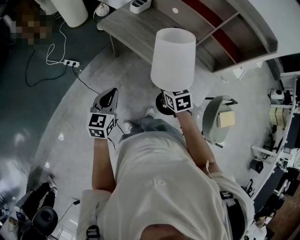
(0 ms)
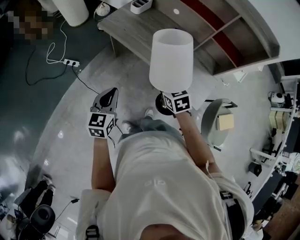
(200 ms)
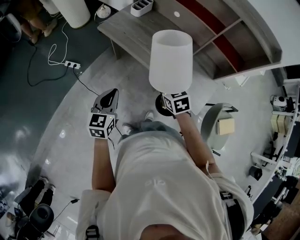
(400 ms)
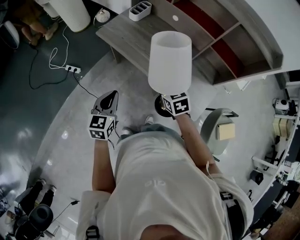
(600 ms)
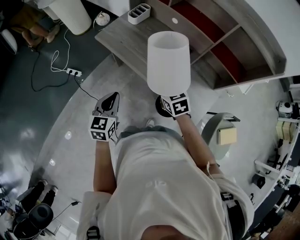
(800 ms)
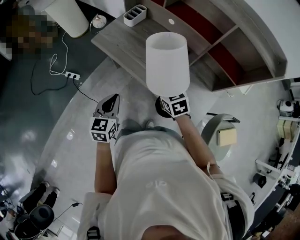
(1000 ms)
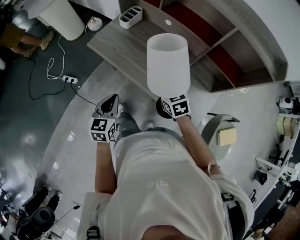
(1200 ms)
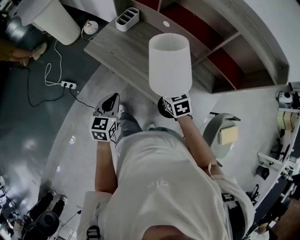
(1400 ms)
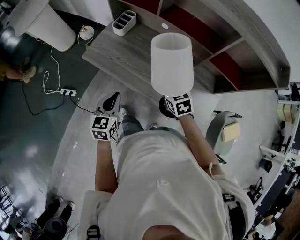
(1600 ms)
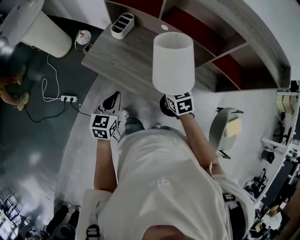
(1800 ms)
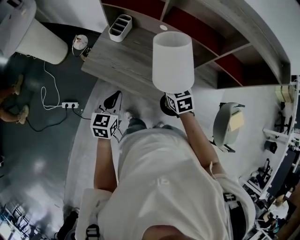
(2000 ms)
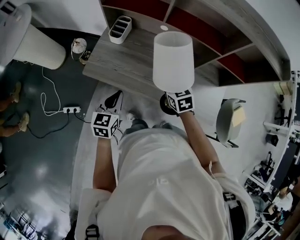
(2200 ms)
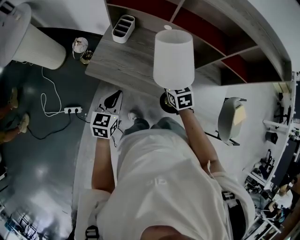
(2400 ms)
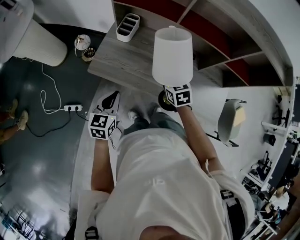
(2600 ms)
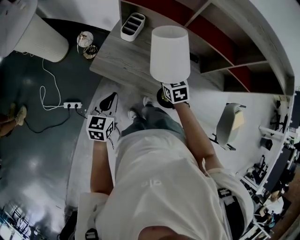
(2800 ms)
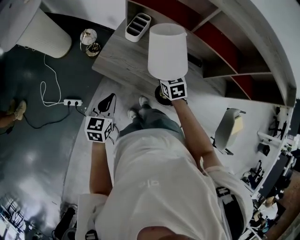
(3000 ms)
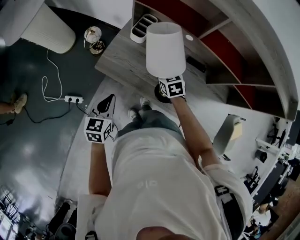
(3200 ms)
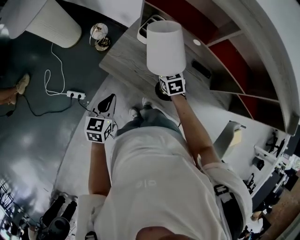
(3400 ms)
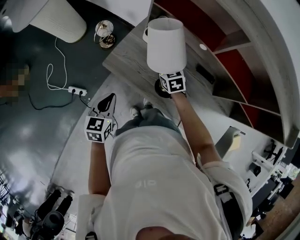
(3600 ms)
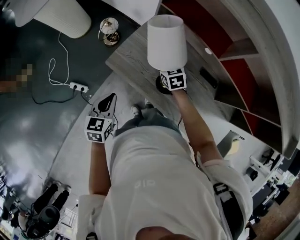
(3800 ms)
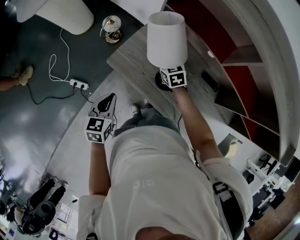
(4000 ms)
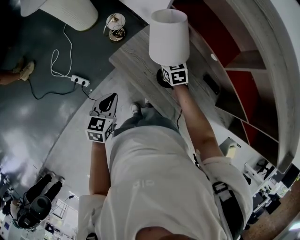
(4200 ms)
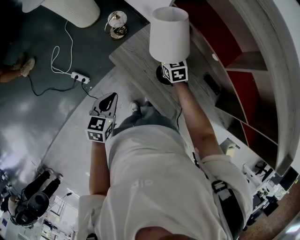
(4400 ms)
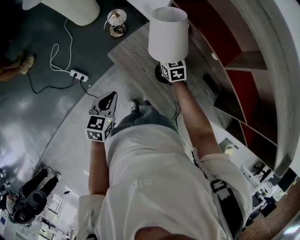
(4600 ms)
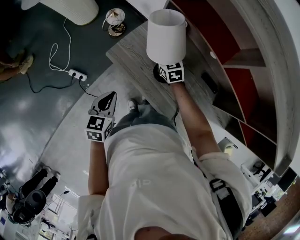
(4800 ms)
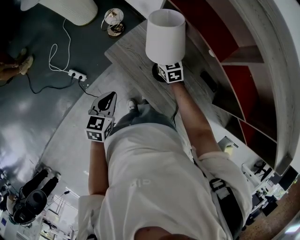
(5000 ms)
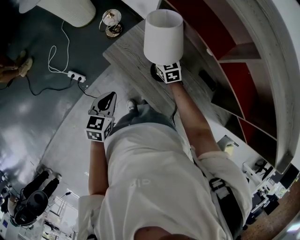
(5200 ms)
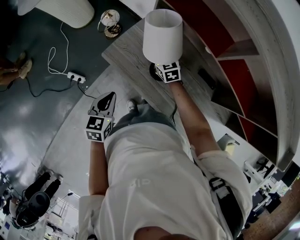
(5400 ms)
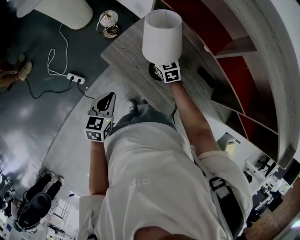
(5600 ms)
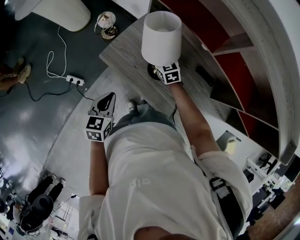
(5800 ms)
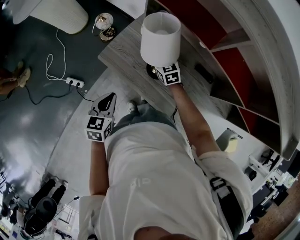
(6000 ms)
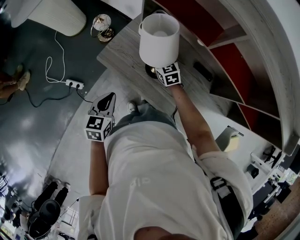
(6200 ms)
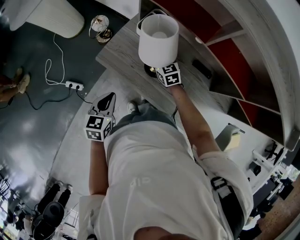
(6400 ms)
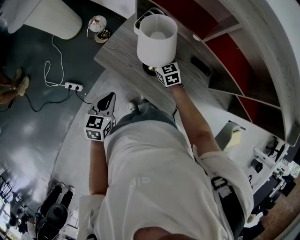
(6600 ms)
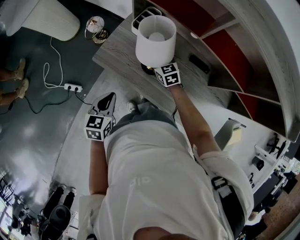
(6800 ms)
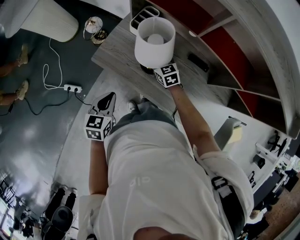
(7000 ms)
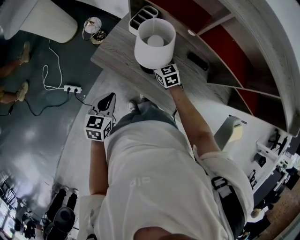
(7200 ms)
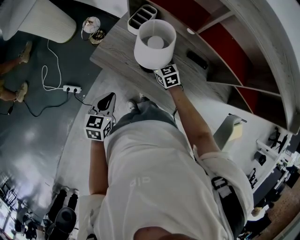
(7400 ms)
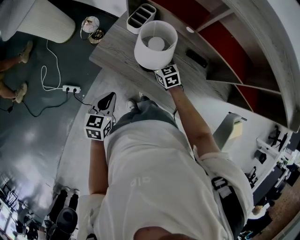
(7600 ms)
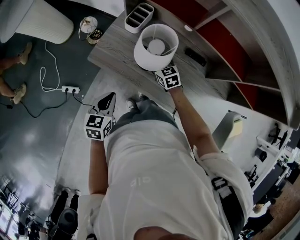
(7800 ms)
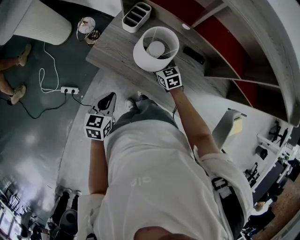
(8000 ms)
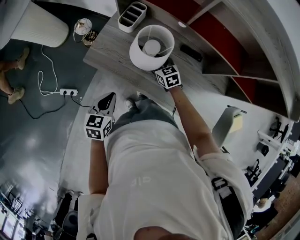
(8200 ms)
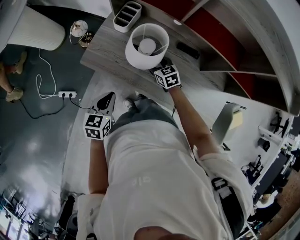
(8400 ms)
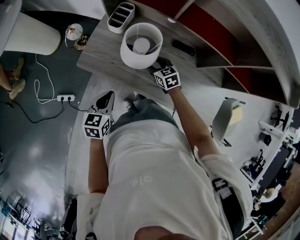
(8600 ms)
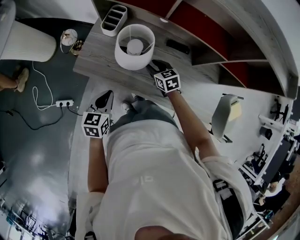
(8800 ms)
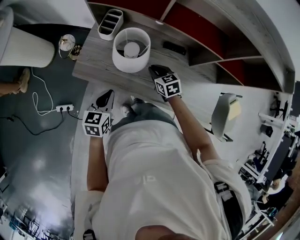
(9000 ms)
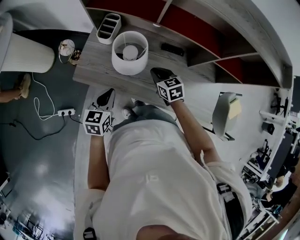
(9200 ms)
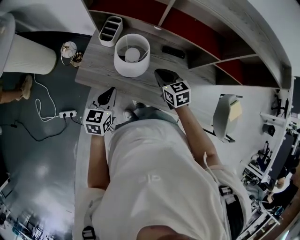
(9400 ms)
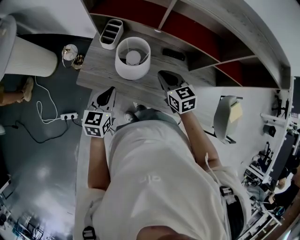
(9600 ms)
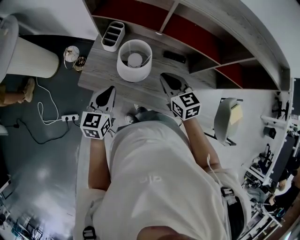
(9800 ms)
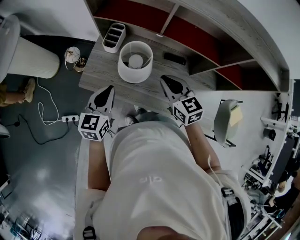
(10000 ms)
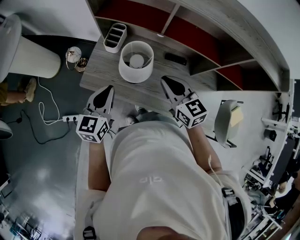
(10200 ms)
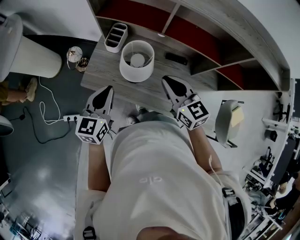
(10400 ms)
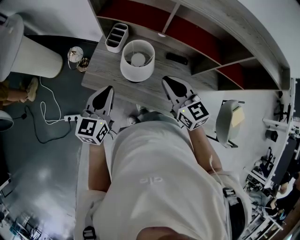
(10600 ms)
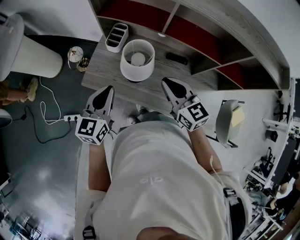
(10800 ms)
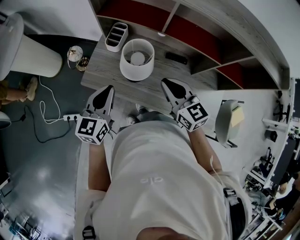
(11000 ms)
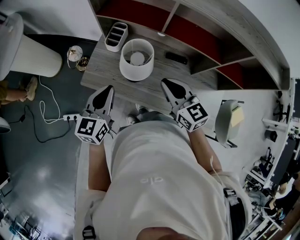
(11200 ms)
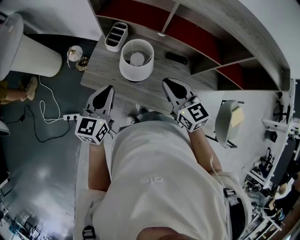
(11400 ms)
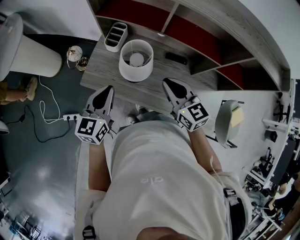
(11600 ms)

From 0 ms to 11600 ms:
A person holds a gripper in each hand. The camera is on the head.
From 0 ms to 1400 ms: Both grippers travel together forward and to the right, some 20 cm.
From 1400 ms to 2800 ms: The grippers both shift to the left and forward by approximately 25 cm.
From 2800 ms to 4400 ms: The left gripper is displaced to the left by some 5 cm, and rotates about 20 degrees; the right gripper heads forward and to the left, covering some 25 cm, and rotates roughly 20 degrees.
From 4400 ms to 5800 ms: The grippers make only small movements.
From 5800 ms to 7200 ms: The right gripper moves backward, about 5 cm.
From 7200 ms to 8800 ms: The right gripper is displaced to the right and backward by about 10 cm; the left gripper travels to the right by some 5 cm.
From 8800 ms to 10200 ms: The right gripper is displaced upward by some 25 cm, swivels roughly 20 degrees, and closes its fingers; the left gripper moves upward and forward, approximately 15 cm.
From 10200 ms to 11600 ms: There are only small adjustments of the grippers.

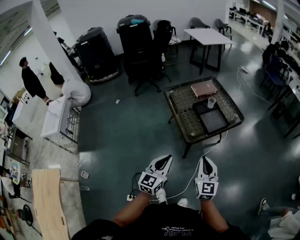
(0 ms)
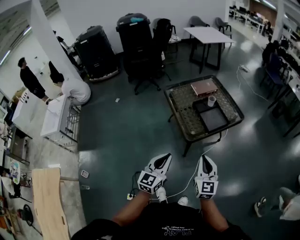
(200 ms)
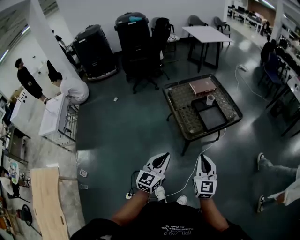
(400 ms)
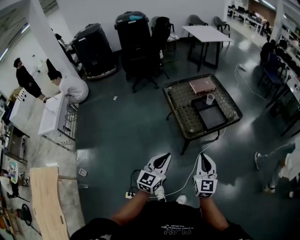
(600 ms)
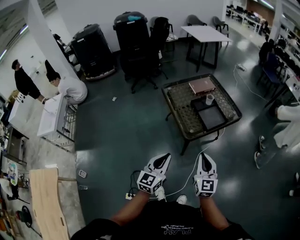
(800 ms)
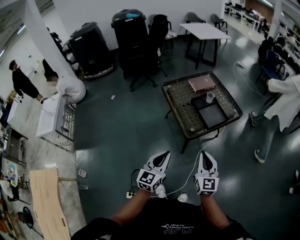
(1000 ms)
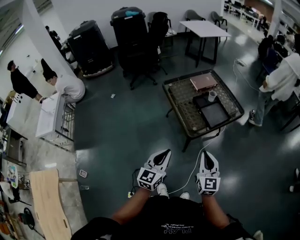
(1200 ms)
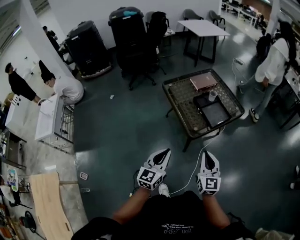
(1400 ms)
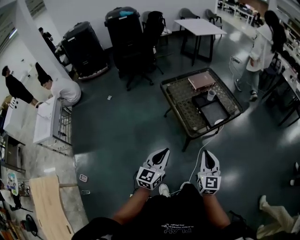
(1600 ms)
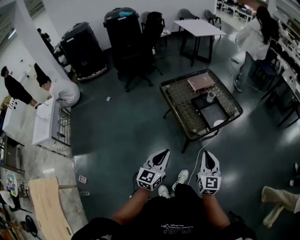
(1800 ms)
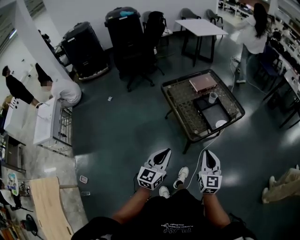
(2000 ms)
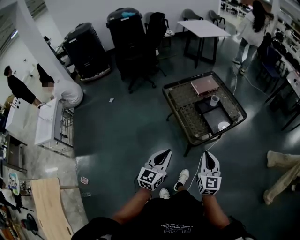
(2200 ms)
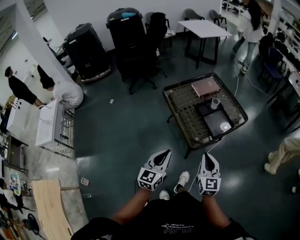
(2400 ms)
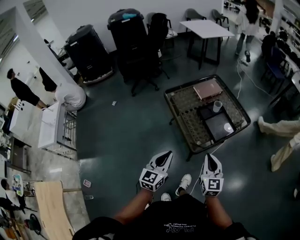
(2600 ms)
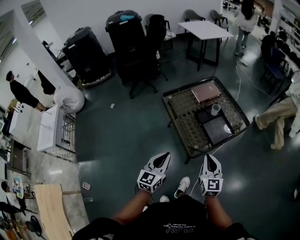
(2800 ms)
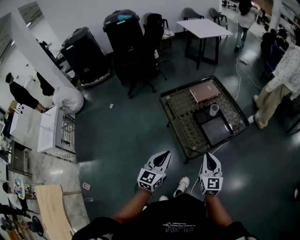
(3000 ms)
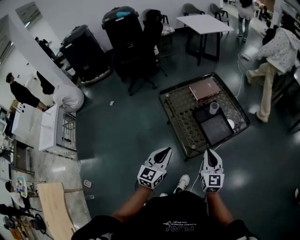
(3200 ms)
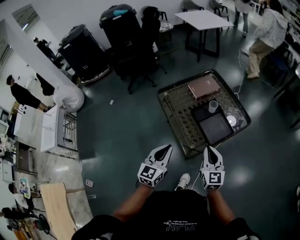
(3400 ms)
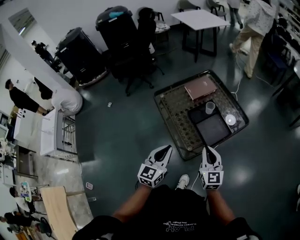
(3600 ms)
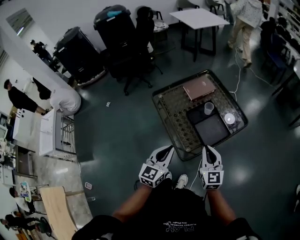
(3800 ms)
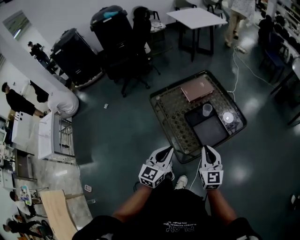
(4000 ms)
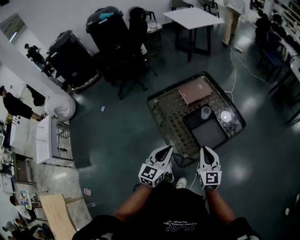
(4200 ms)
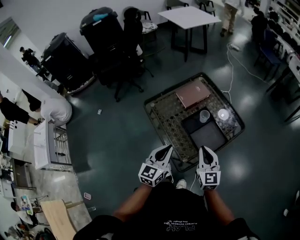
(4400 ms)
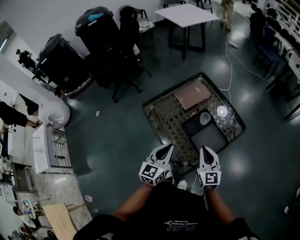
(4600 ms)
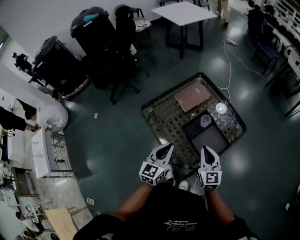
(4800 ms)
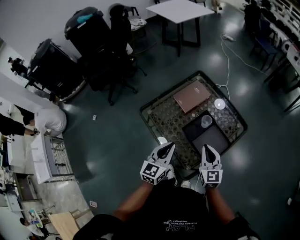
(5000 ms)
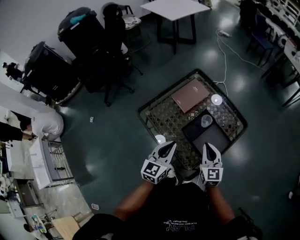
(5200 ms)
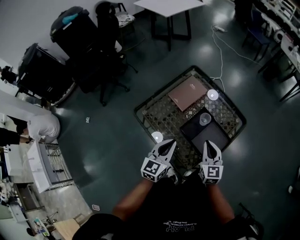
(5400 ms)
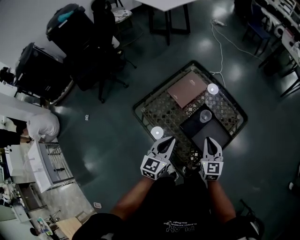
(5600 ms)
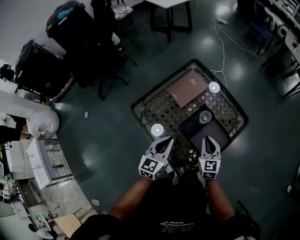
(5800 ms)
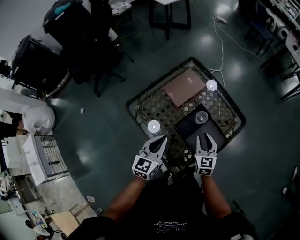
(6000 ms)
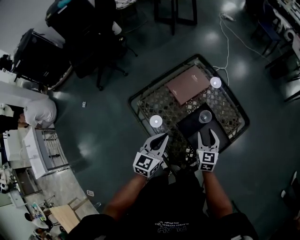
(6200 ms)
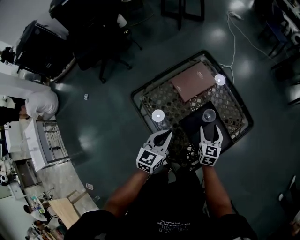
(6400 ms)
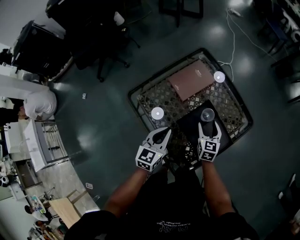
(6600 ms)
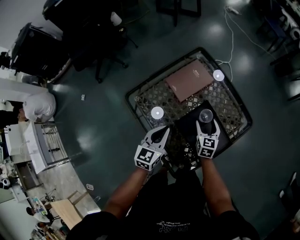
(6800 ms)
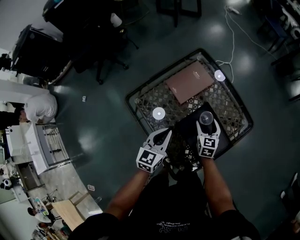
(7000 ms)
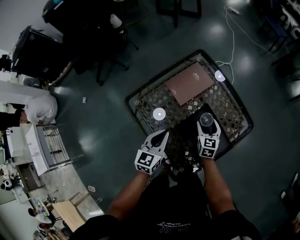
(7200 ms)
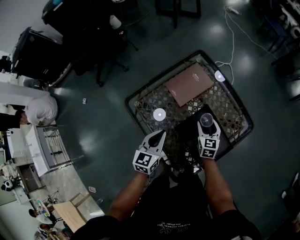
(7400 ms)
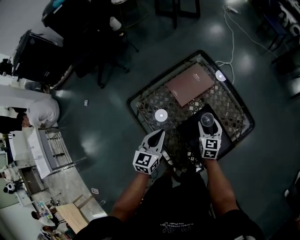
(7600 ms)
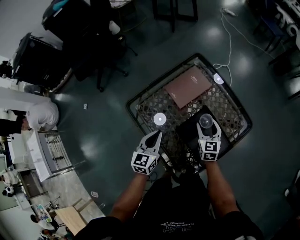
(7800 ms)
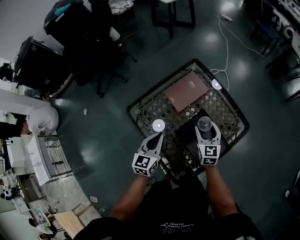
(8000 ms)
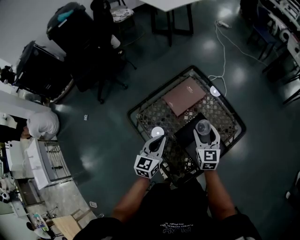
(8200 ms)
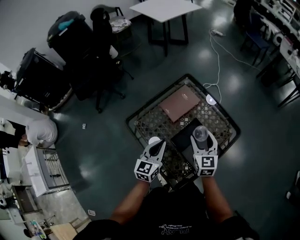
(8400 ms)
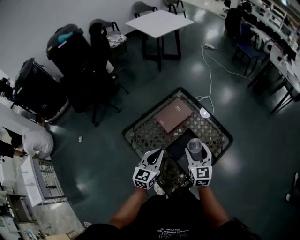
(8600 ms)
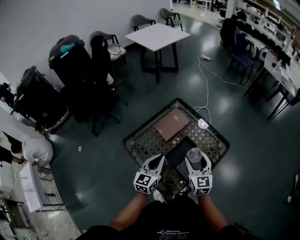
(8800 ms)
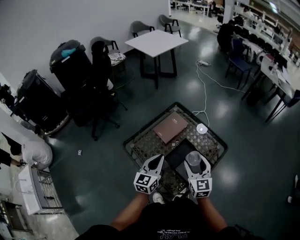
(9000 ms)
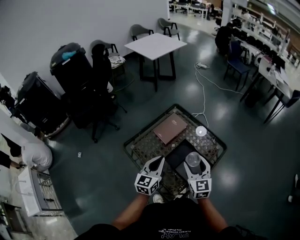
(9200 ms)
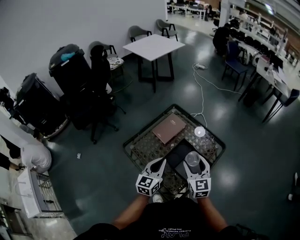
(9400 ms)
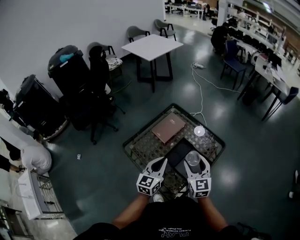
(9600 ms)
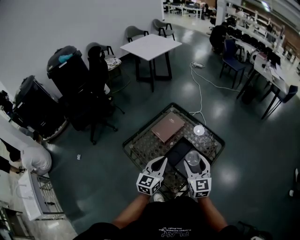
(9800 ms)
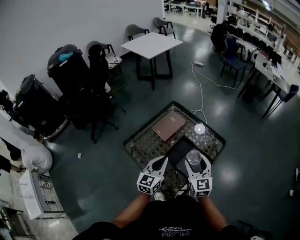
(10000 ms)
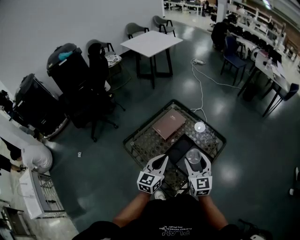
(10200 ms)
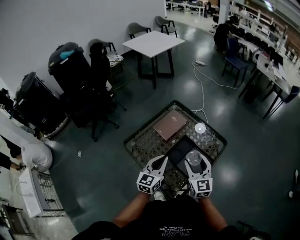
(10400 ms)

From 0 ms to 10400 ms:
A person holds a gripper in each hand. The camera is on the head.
From 0 ms to 1400 ms: The left gripper travels to the left by approximately 5 cm.
From 1400 ms to 3000 ms: The grippers both shift forward by some 15 cm.
From 3000 ms to 4400 ms: Both grippers travel together forward, roughly 15 cm.
From 4400 ms to 6000 ms: The two grippers go approximately 20 cm forward and downward. The right gripper swivels some 20 degrees.
From 6000 ms to 7400 ms: The right gripper is displaced forward and downward by about 15 cm, and opens up, while the left gripper goes about 5 cm downward.
From 7400 ms to 9000 ms: The left gripper travels upward by about 15 cm; the right gripper heads upward and backward, covering roughly 25 cm, and turns by about 20 degrees.
From 9000 ms to 10400 ms: The grippers make only small movements.

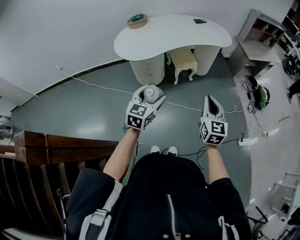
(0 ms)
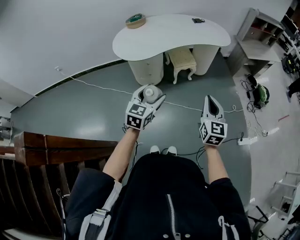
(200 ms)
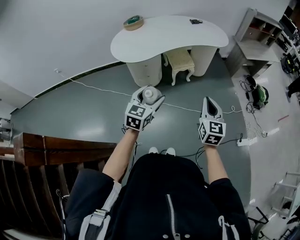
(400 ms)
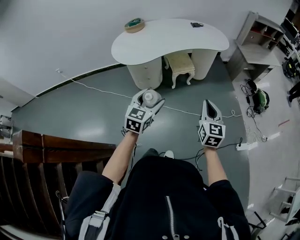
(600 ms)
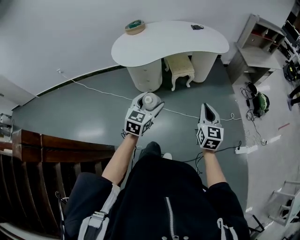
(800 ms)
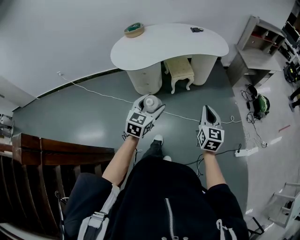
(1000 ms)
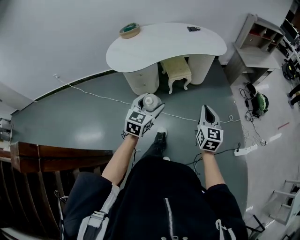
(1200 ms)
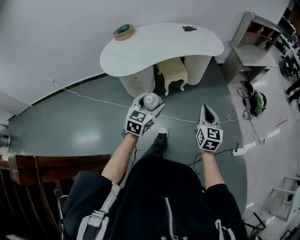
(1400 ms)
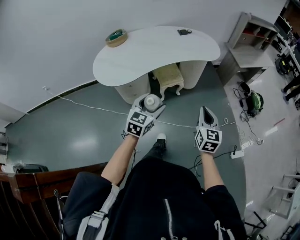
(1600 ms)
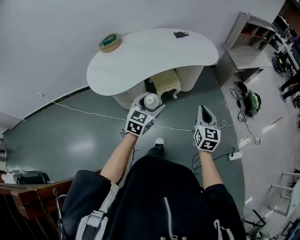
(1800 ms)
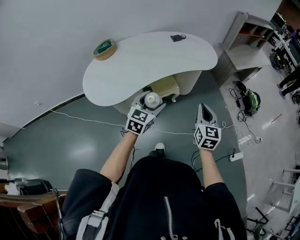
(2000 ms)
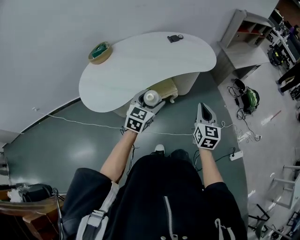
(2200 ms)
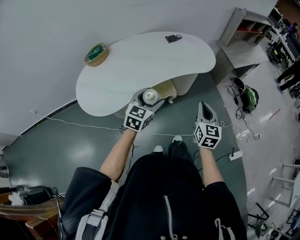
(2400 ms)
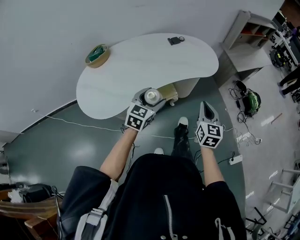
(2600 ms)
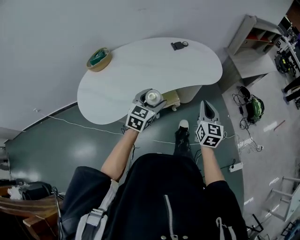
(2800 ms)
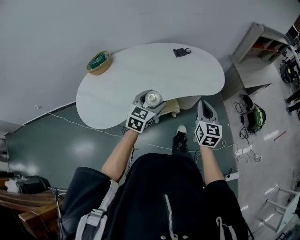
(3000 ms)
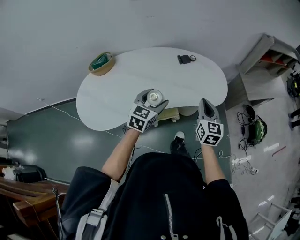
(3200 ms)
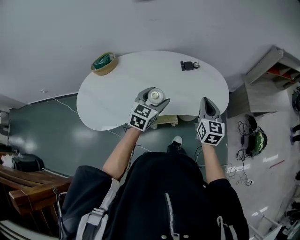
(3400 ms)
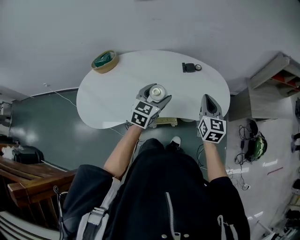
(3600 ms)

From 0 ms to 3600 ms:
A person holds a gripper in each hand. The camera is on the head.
From 0 ms to 1800 ms: Both grippers travel together forward, approximately 25 cm.
From 1800 ms to 3600 ms: Both grippers are carried forward, roughly 50 cm.
